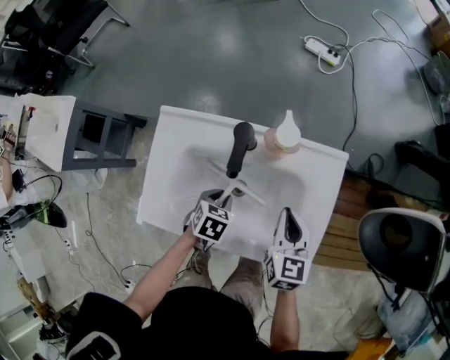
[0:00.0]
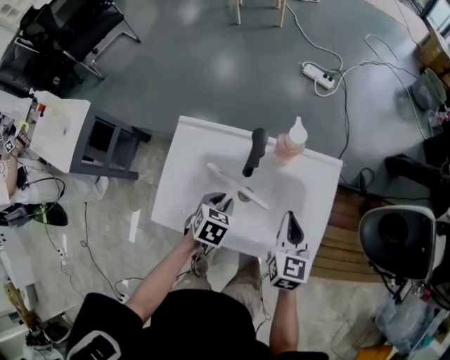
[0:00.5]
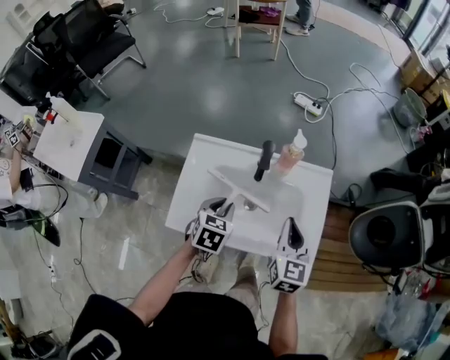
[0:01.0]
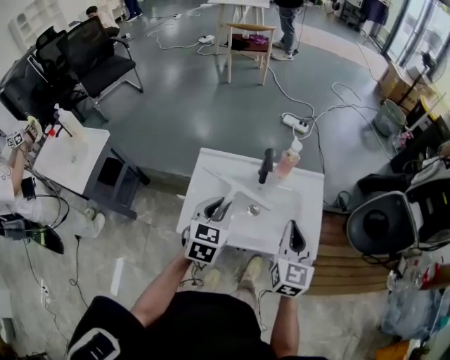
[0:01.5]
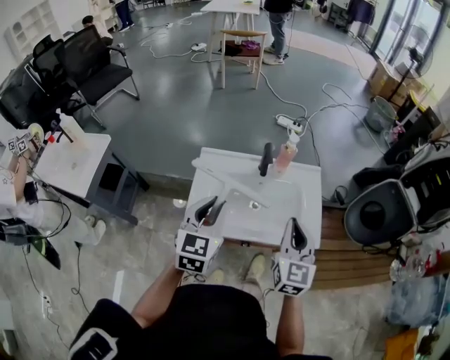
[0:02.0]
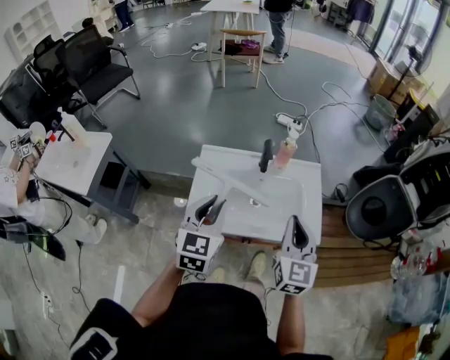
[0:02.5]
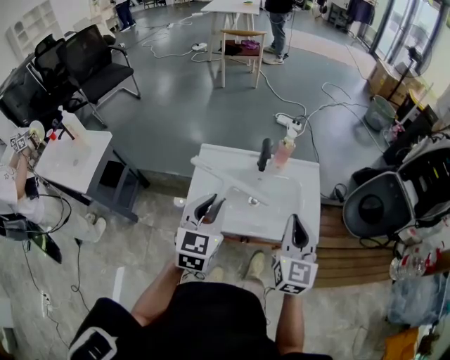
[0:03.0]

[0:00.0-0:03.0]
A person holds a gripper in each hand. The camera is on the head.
0:00.0 to 0:01.5: The left gripper shifts roughly 30 cm upward, and tips its fingers upward by roughly 40 degrees. The right gripper travels upward and backward by roughly 25 cm, and turns by approximately 30 degrees.
0:01.5 to 0:03.0: The right gripper is displaced backward by approximately 5 cm. The left gripper is displaced backward and upward by approximately 10 cm.

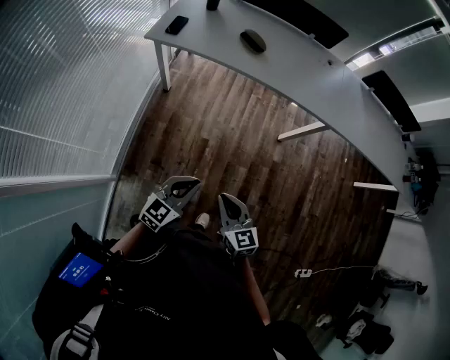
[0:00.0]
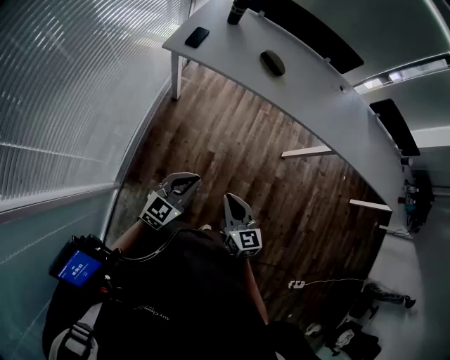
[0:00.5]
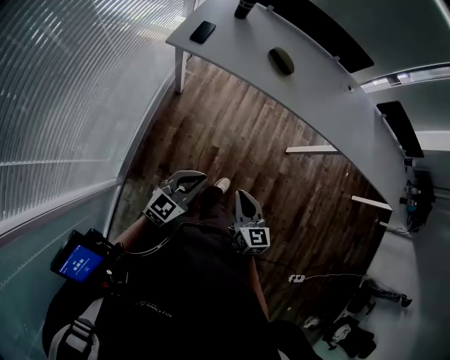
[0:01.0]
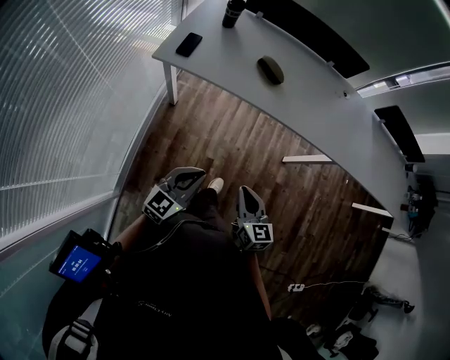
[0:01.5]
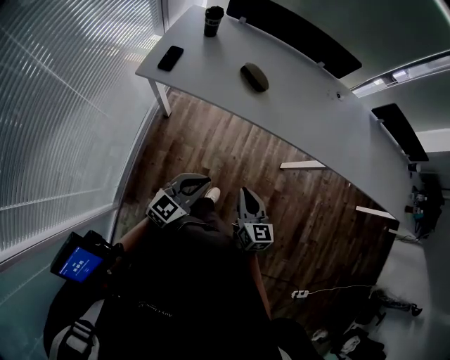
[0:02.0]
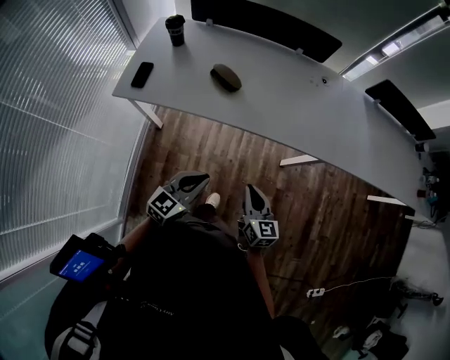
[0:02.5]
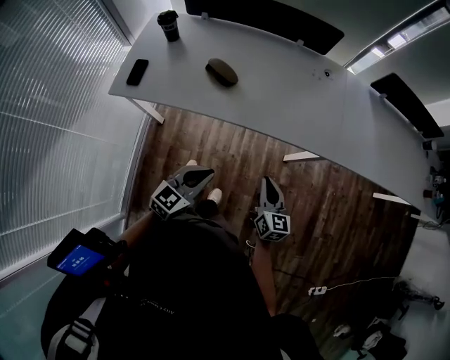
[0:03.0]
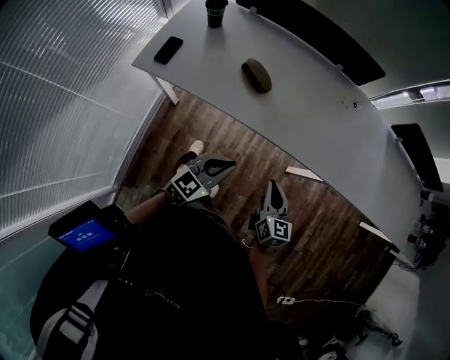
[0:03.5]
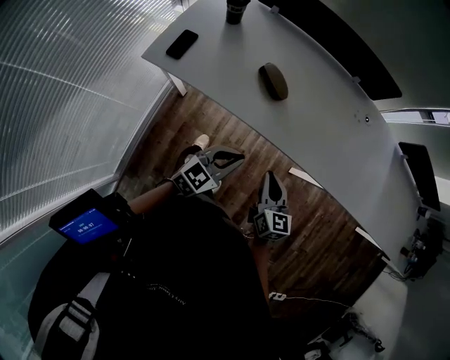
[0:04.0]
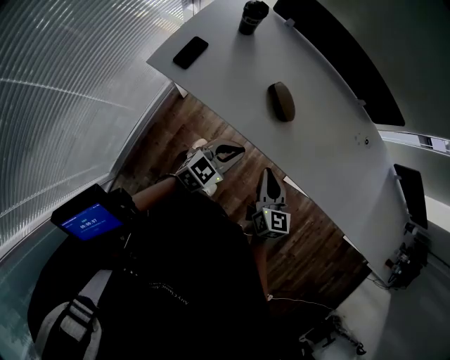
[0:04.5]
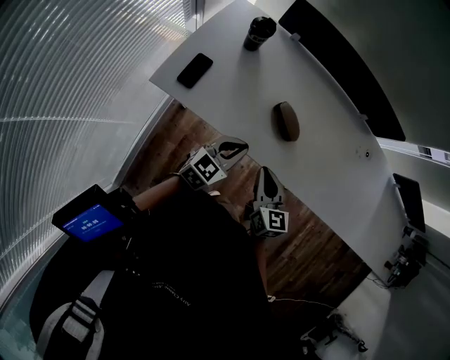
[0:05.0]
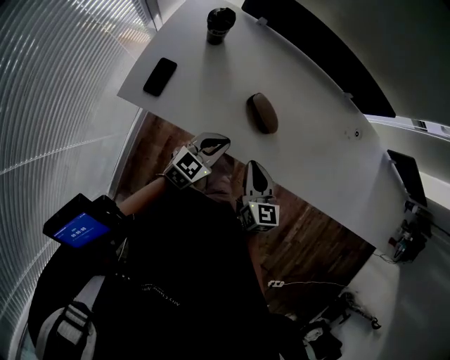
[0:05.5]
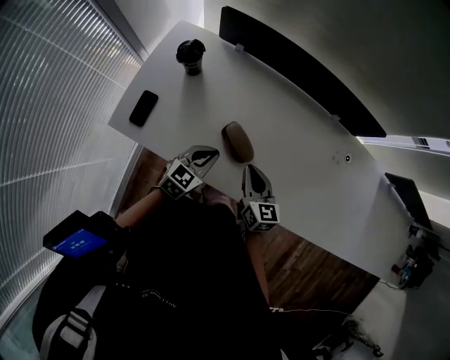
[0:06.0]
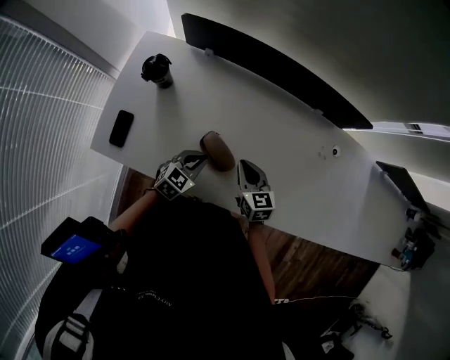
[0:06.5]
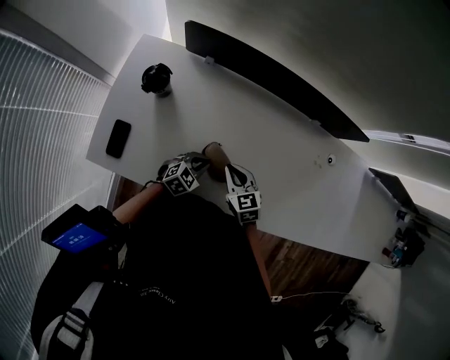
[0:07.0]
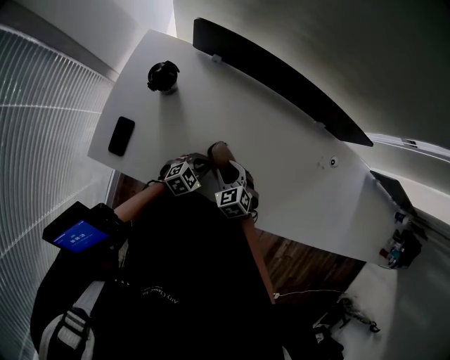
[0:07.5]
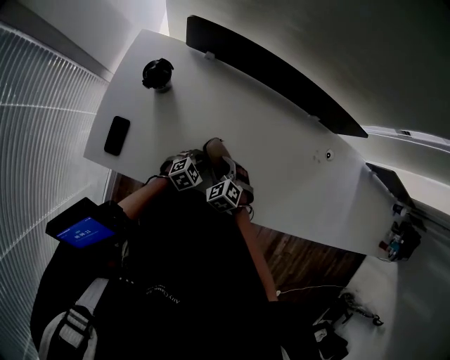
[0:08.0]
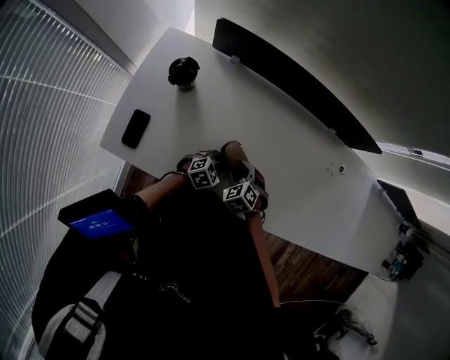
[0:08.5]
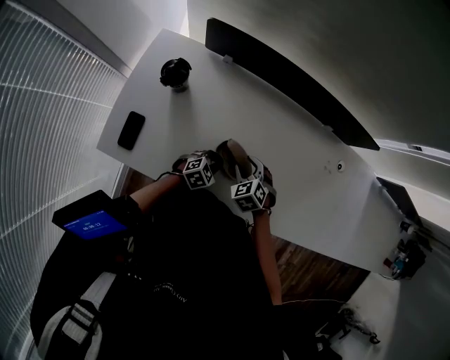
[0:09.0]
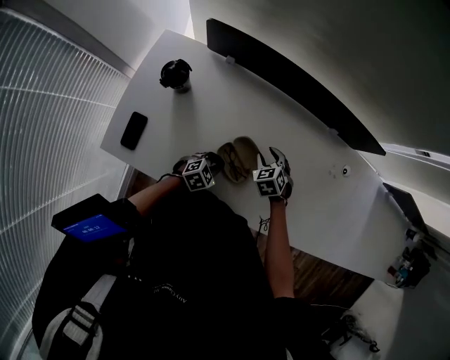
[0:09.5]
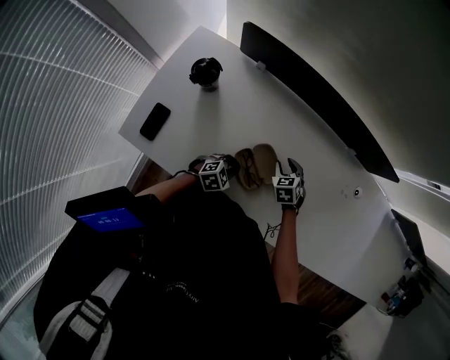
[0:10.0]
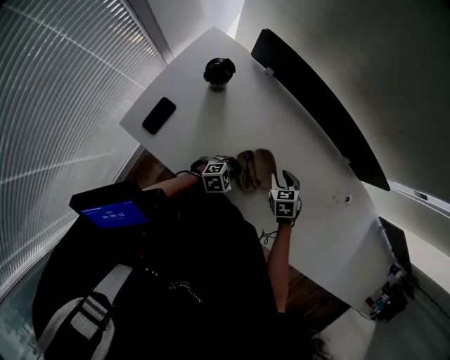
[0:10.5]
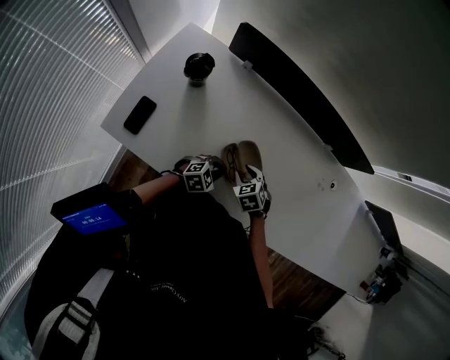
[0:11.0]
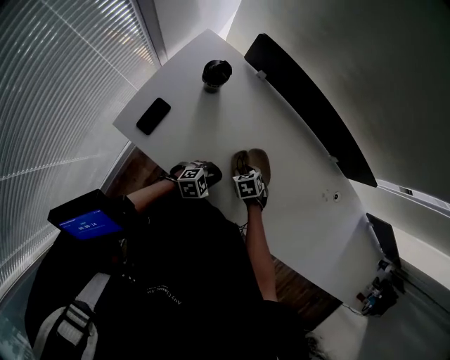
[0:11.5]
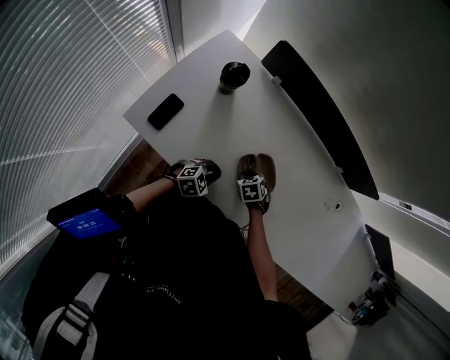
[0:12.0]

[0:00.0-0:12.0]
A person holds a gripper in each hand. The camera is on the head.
0:00.0 to 0:02.0: Both grippers move forward, roughly 25 cm.
0:02.0 to 0:04.0: Both grippers travel together forward, roughly 20 cm.
0:04.0 to 0:06.0: The grippers both shift forward by roughly 25 cm.
0:06.0 to 0:08.0: The left gripper heads downward, covering approximately 15 cm, and changes its angle by roughly 30 degrees, while the right gripper shifts approximately 15 cm downward and to the left, tilts its fingers approximately 40 degrees downward, and opens its fingers.
0:08.0 to 0:10.0: The right gripper moves forward and to the right, about 15 cm.
0:10.0 to 0:12.0: The left gripper shifts by about 10 cm, while the right gripper ends up approximately 15 cm from where it was.

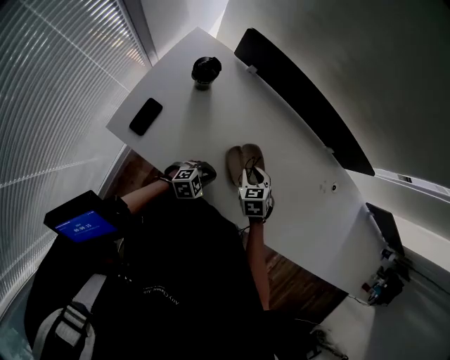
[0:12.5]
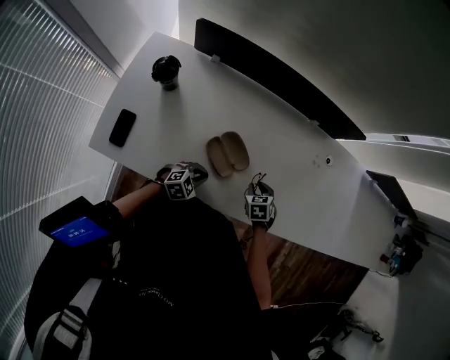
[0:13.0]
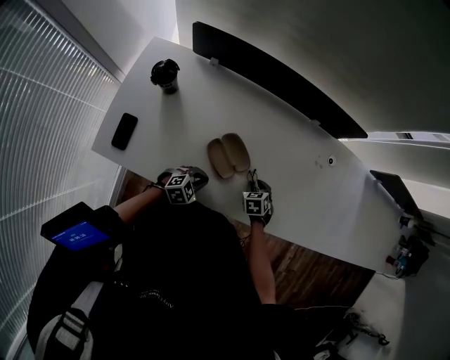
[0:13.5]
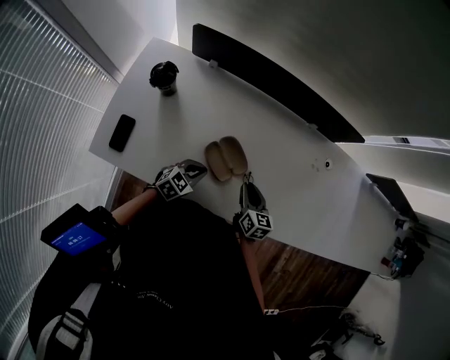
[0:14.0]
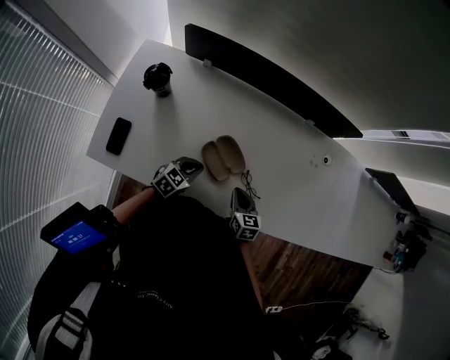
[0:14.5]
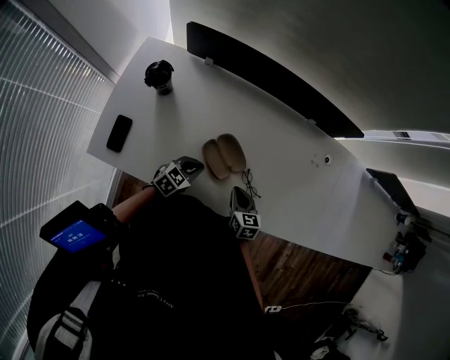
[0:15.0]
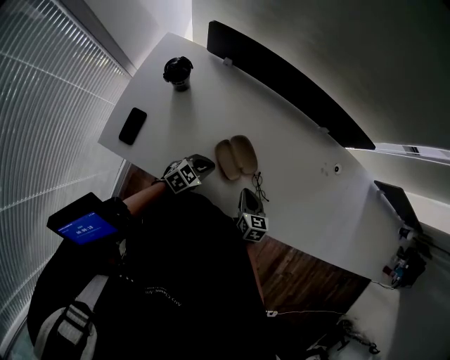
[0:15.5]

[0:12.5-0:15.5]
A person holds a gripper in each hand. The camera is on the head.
0:12.5 to 0:14.0: The right gripper travels to the right by about 15 cm, and twists approximately 40 degrees clockwise, seen from behind.
0:14.0 to 0:15.5: The right gripper shifts by roughly 5 cm.

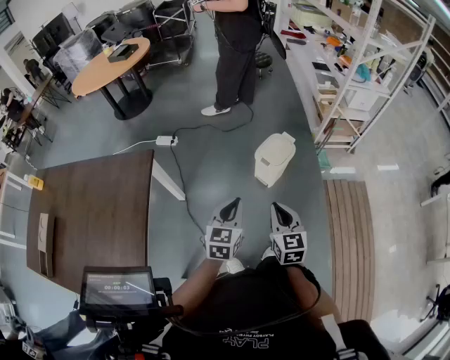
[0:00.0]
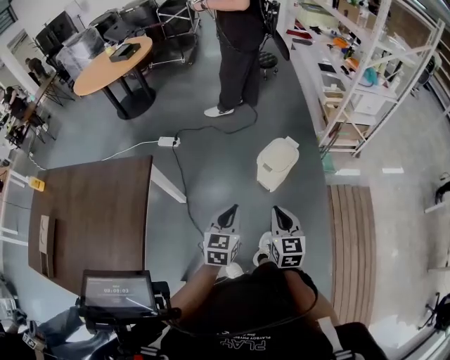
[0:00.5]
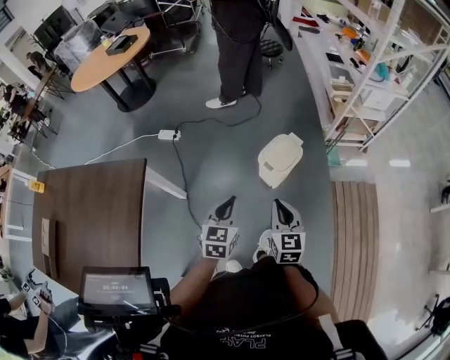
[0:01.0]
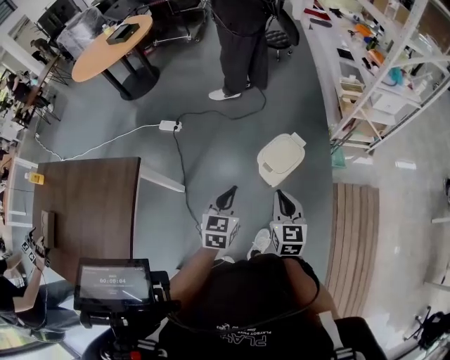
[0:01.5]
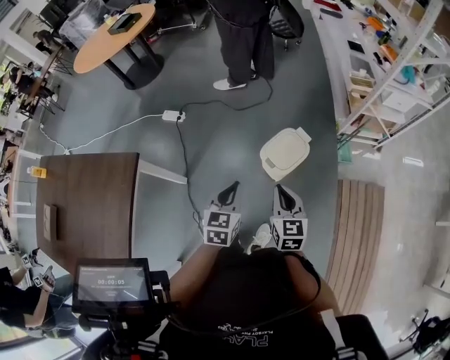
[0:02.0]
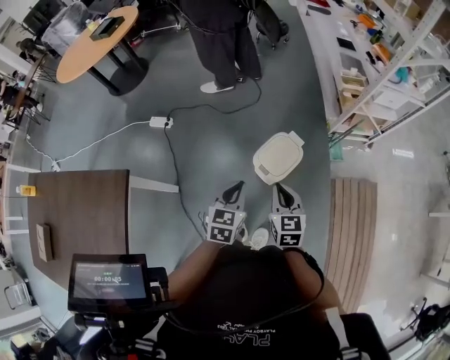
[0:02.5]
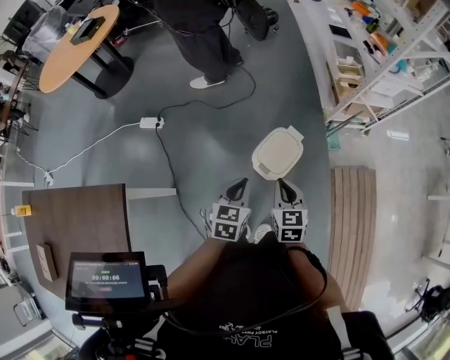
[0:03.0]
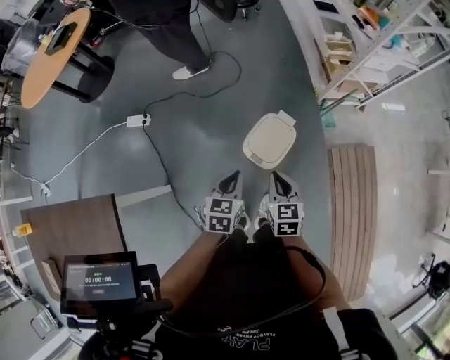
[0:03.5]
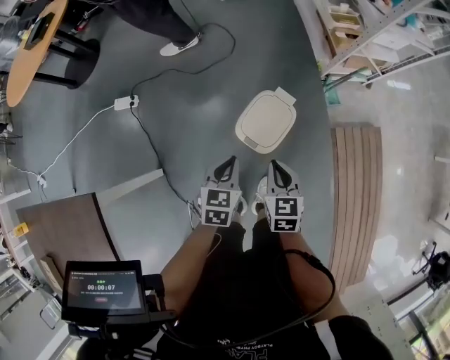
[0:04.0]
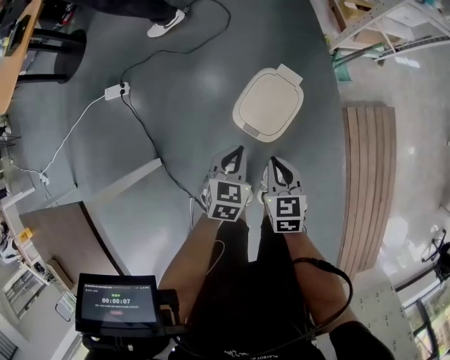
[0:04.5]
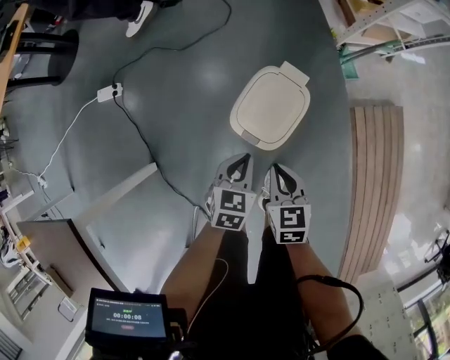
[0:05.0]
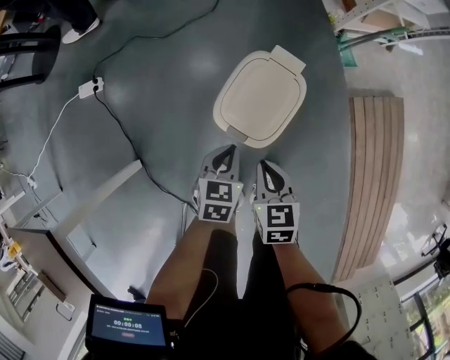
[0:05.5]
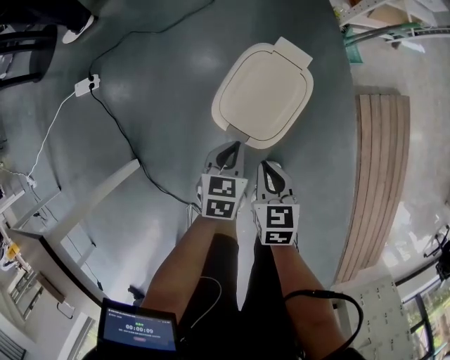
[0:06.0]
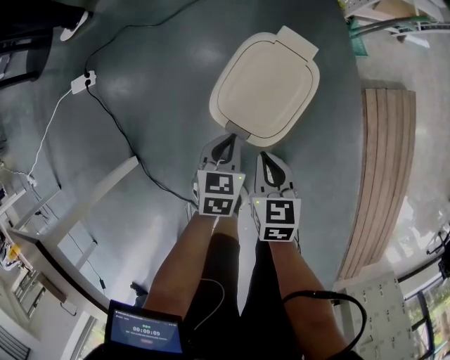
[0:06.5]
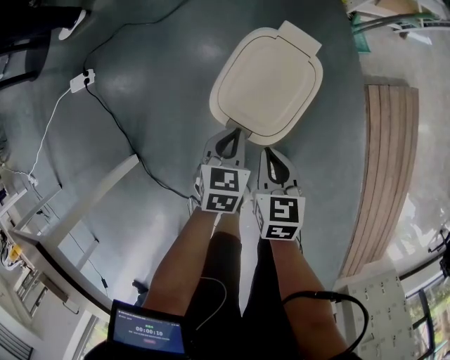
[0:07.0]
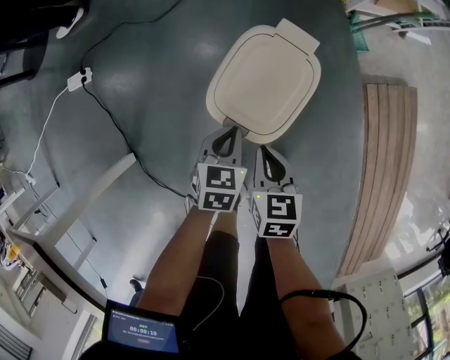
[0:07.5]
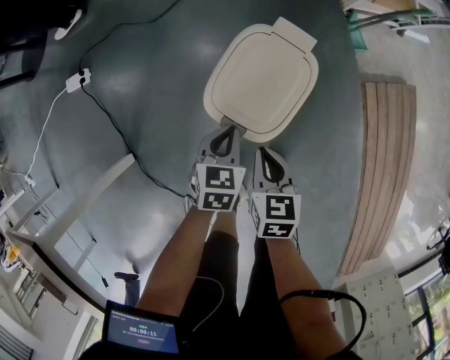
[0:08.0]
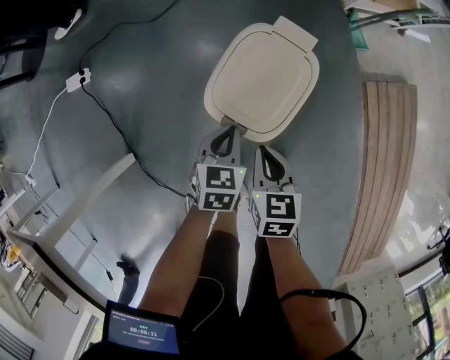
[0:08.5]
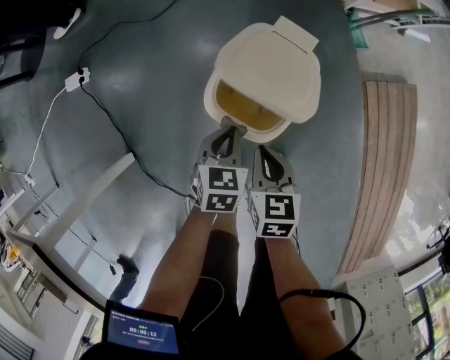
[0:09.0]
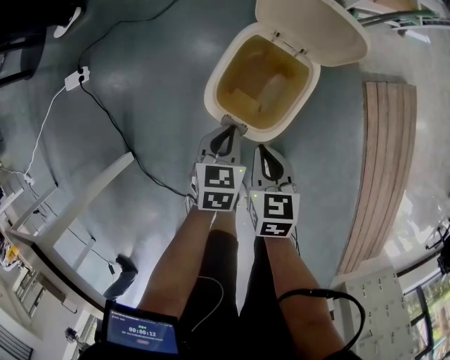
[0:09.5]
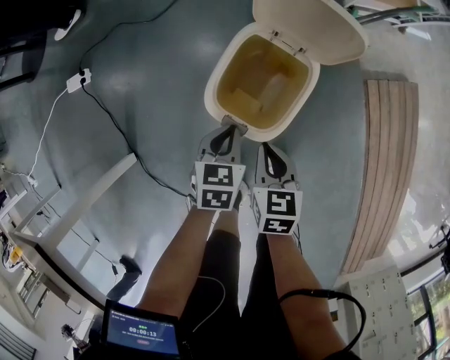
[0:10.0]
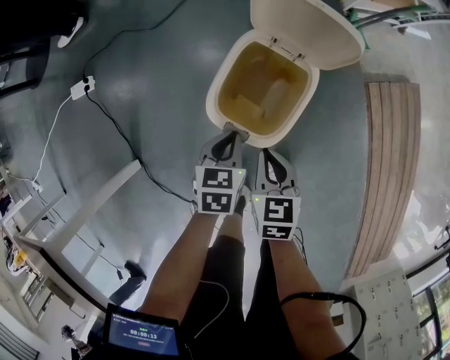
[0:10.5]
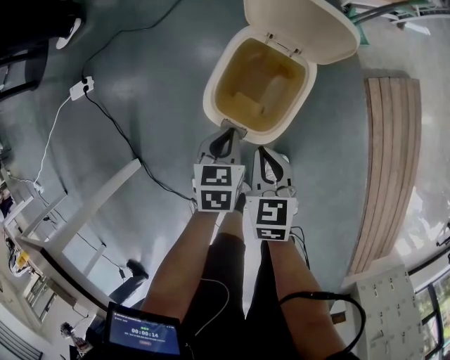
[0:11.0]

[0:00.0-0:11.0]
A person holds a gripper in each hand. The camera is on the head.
0:00.0 to 0:02.0: The grippers both shift forward by approximately 25 cm.
0:02.0 to 0:03.5: Both grippers move forward and downward, approximately 15 cm.
0:03.5 to 0:05.5: Both grippers travel together downward, roughly 30 cm.
0:05.5 to 0:07.5: The grippers both shift downward by approximately 10 cm.
0:07.5 to 0:09.0: Both grippers stay put.
0:09.0 to 0:11.0: There are only small adjustments of the grippers.
